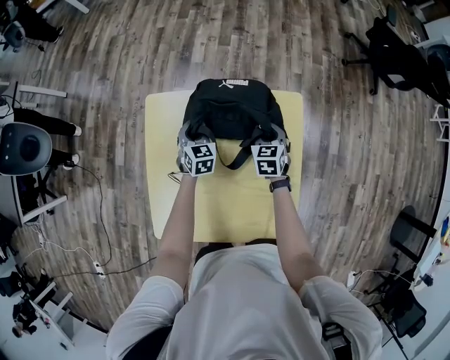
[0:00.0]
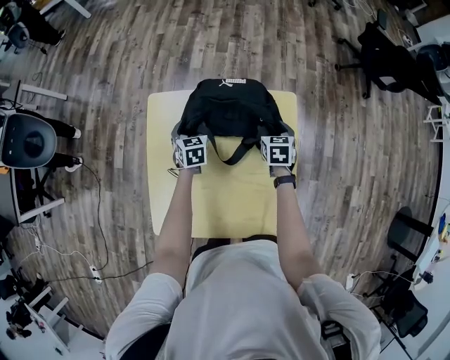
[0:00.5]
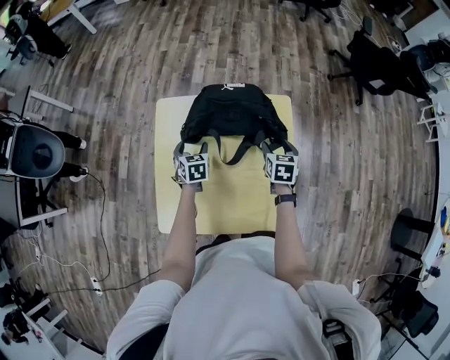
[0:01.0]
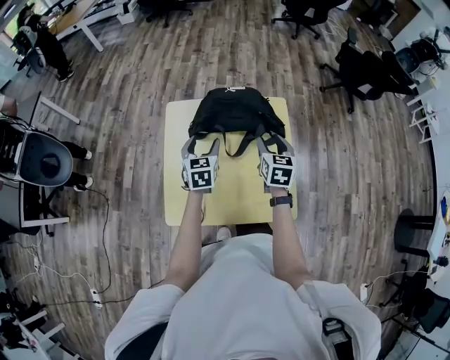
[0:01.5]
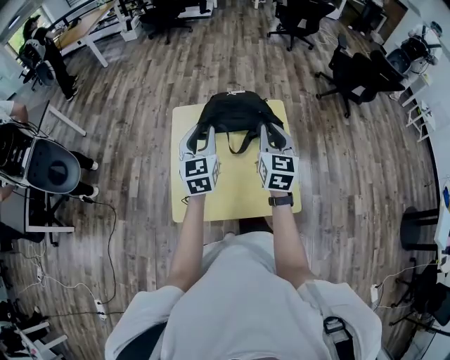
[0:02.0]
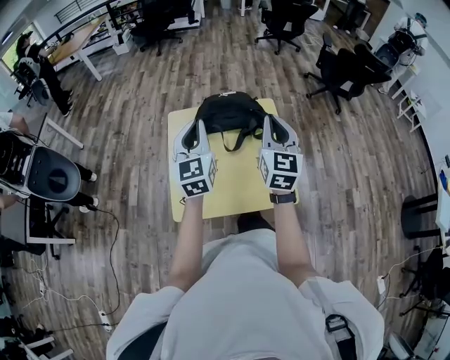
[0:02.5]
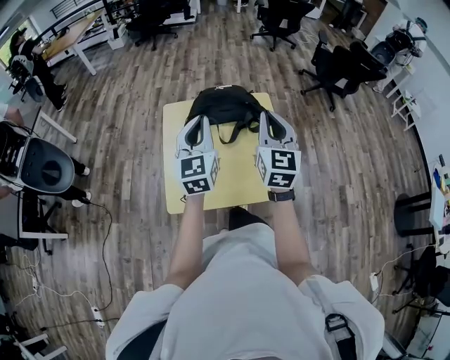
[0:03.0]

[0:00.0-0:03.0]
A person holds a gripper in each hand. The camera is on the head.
0:00.0 to 0:01.5: Both grippers move upward and backward, roughly 25 cm. The left gripper opens its fingers. Meanwhile the right gripper swivels some 20 degrees, and opens up.
0:01.5 to 0:03.0: The two grippers go roughly 25 cm upward and backward. The left gripper tilts its fingers roughly 30 degrees upward, and closes up. Meanwhile the right gripper changes its angle by some 30 degrees, and closes up.

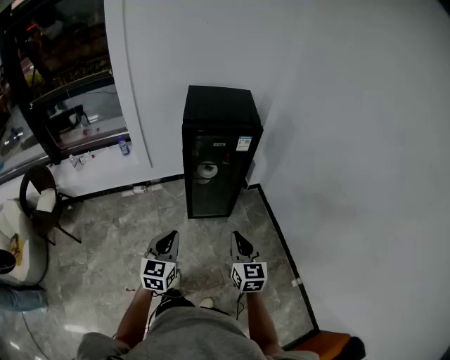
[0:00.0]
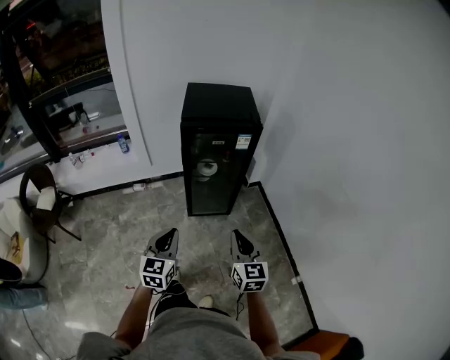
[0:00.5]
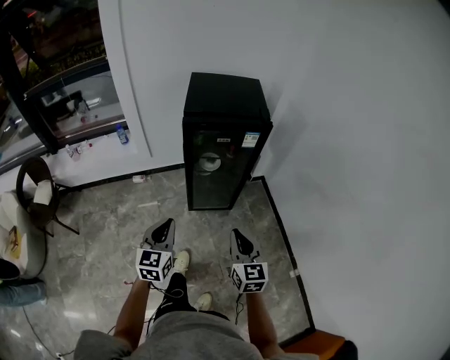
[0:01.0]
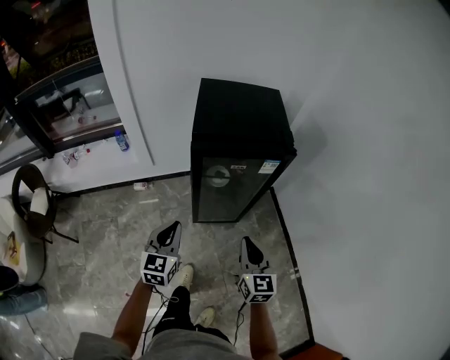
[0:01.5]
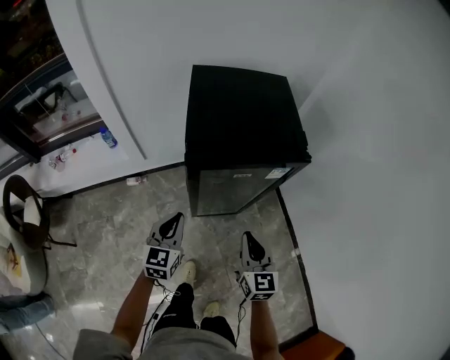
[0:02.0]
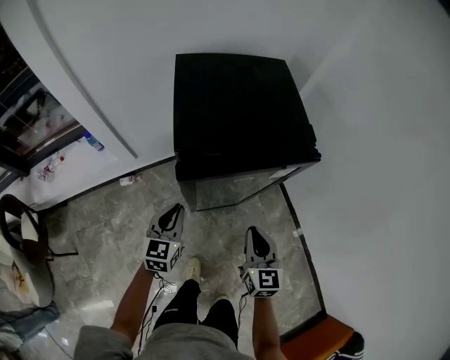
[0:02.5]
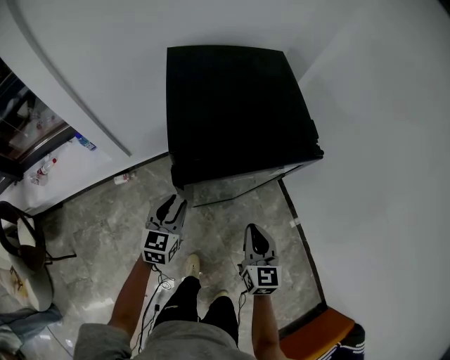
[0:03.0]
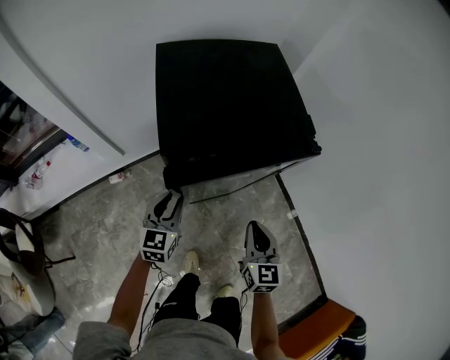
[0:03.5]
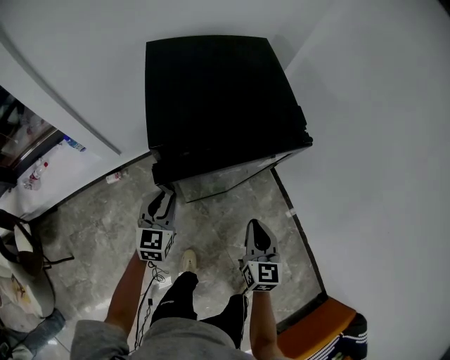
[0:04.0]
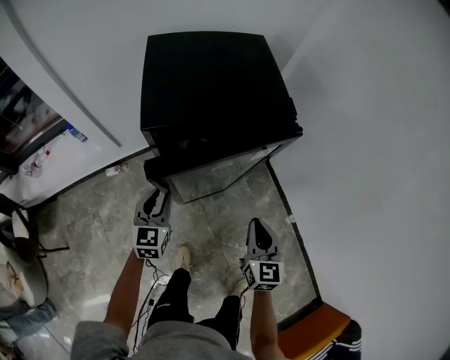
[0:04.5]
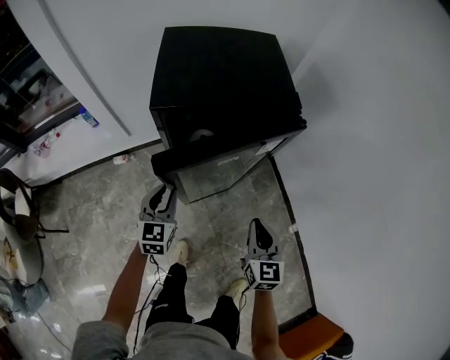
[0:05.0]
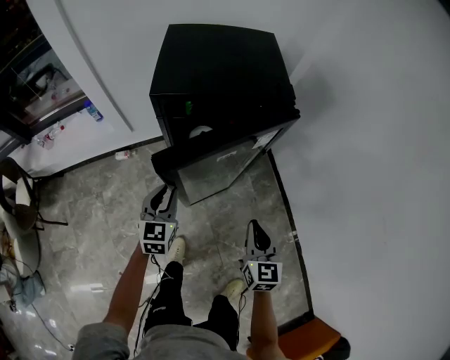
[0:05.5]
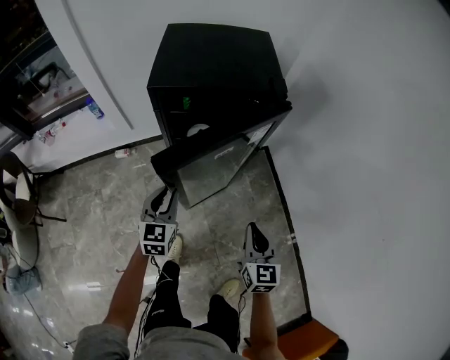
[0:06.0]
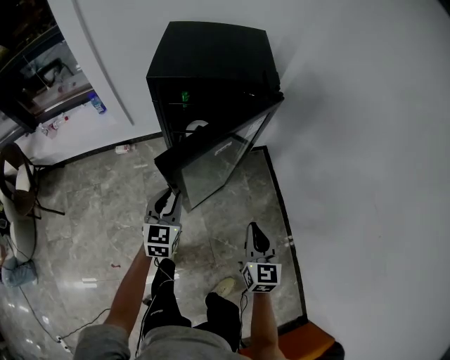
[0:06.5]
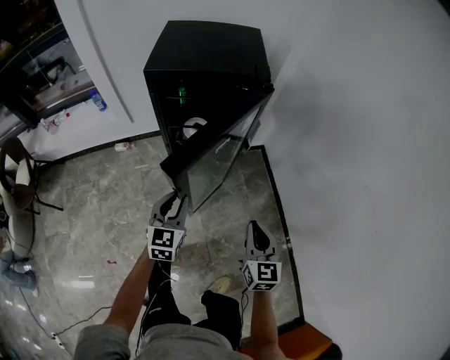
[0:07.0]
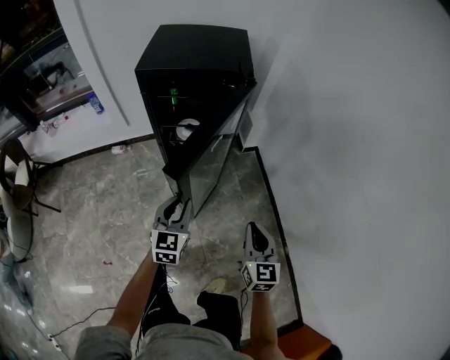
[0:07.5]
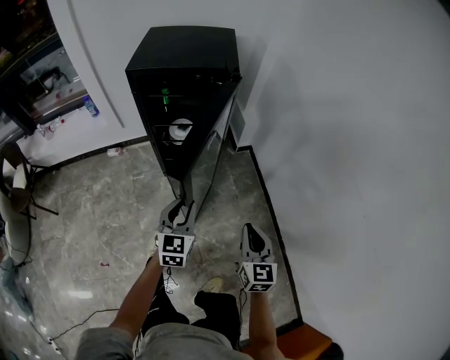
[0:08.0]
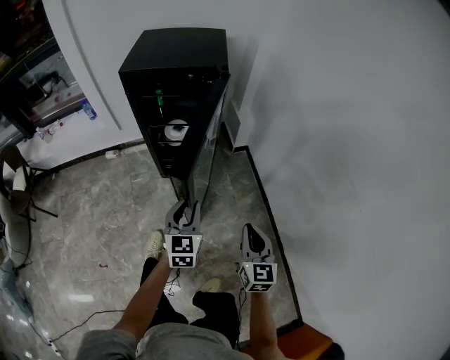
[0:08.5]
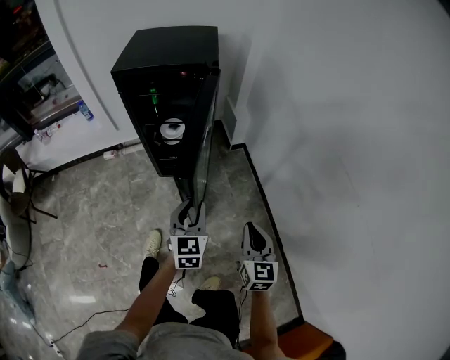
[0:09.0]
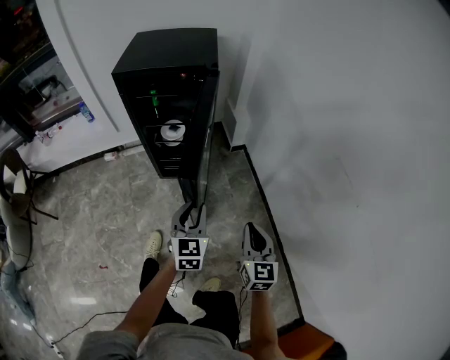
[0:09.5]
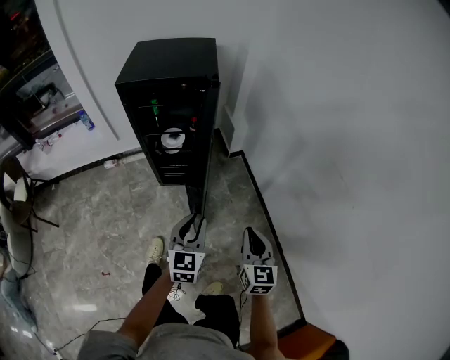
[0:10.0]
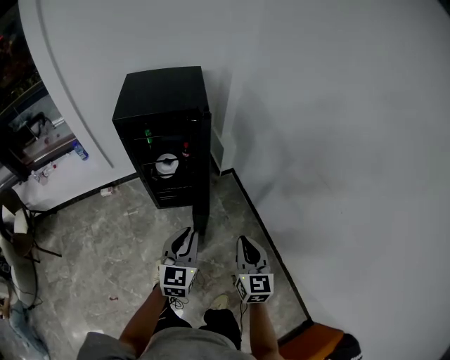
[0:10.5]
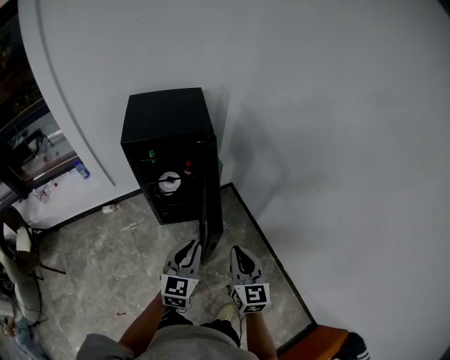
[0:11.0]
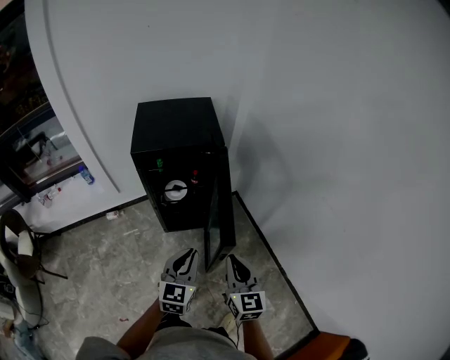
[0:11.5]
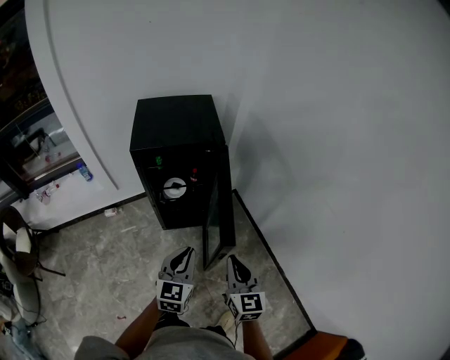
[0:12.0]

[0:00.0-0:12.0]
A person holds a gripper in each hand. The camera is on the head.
0:00.0 to 0:02.0: The grippers both shift forward by about 30 cm.
0:02.0 to 0:04.0: The left gripper is displaced forward and downward by roughly 15 cm, and opens up; the right gripper shifts roughly 5 cm downward.
0:04.0 to 0:06.0: The two grippers go roughly 15 cm backward and to the right.
0:06.0 to 0:08.0: Both grippers move to the right and backward, some 20 cm.
0:08.0 to 0:10.0: The left gripper shifts approximately 10 cm to the right and backward; the right gripper changes place by about 5 cm.
0:10.0 to 0:12.0: The two grippers go roughly 20 cm to the left and upward.

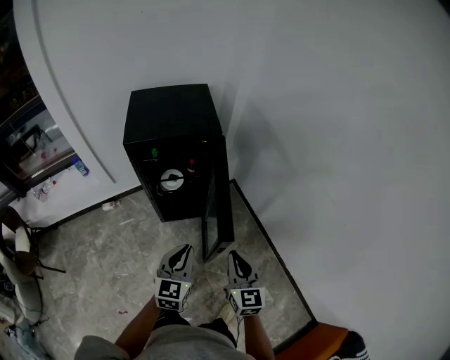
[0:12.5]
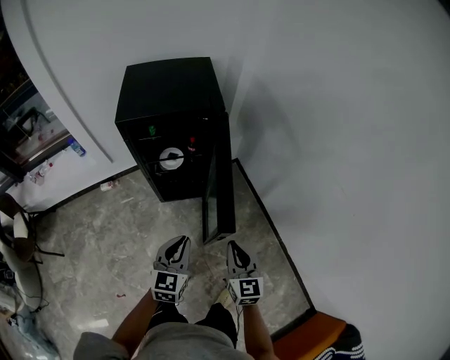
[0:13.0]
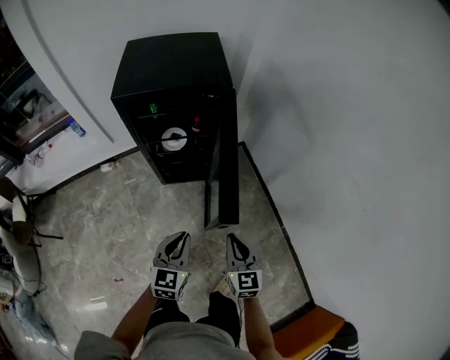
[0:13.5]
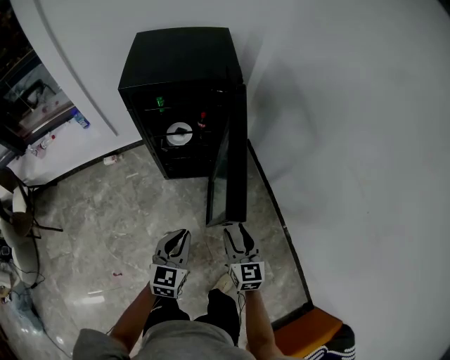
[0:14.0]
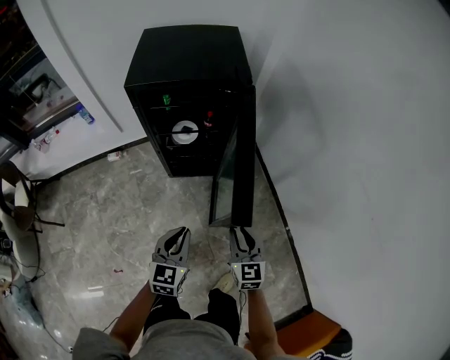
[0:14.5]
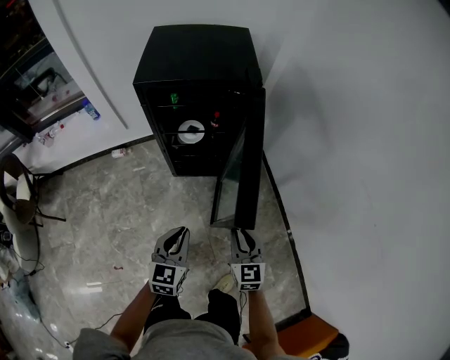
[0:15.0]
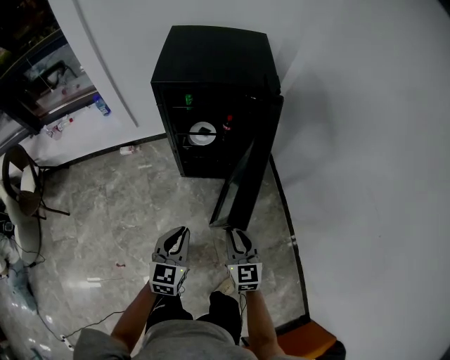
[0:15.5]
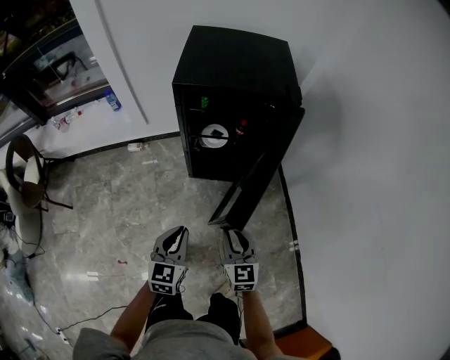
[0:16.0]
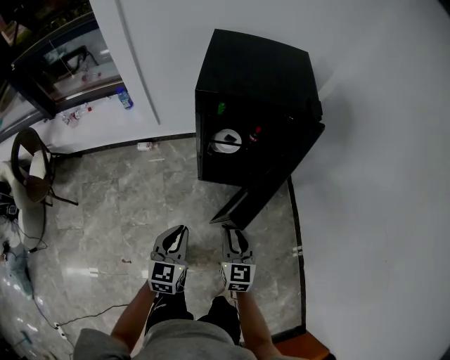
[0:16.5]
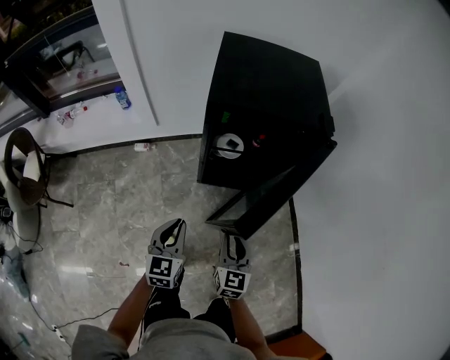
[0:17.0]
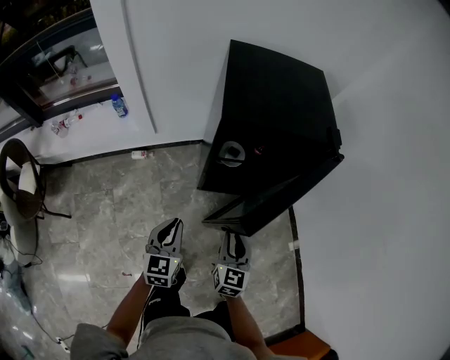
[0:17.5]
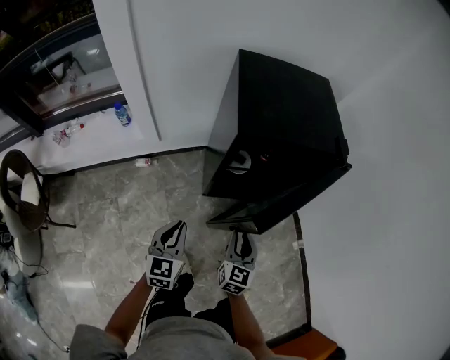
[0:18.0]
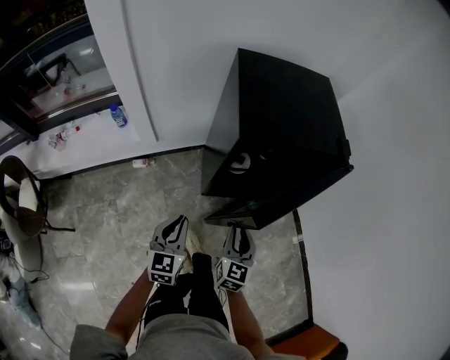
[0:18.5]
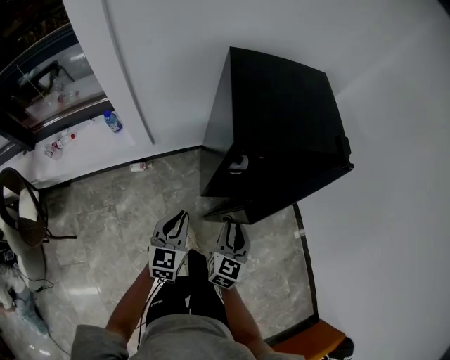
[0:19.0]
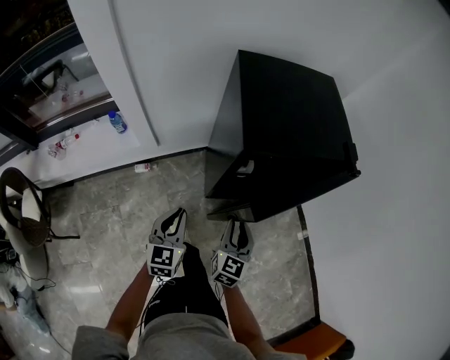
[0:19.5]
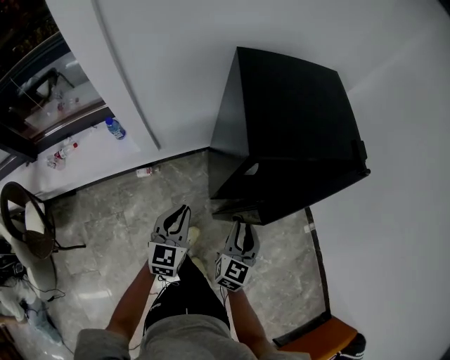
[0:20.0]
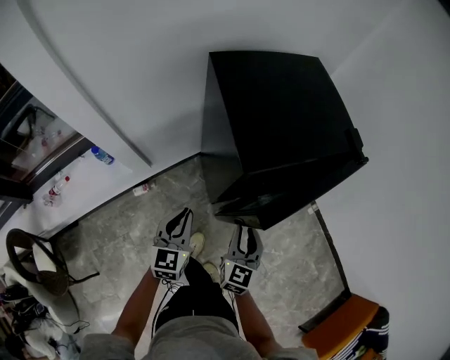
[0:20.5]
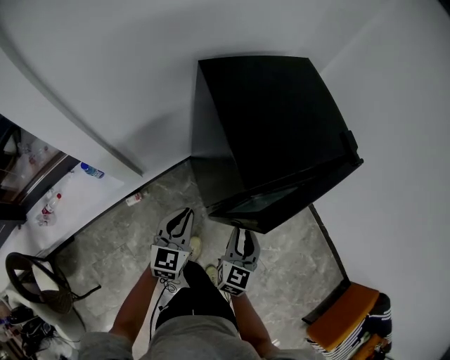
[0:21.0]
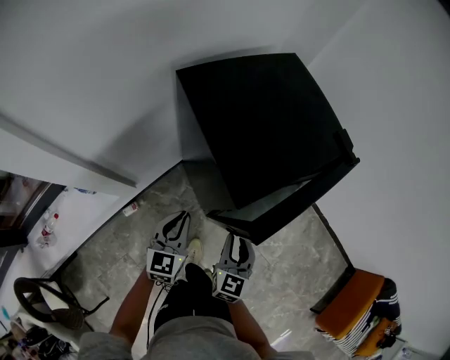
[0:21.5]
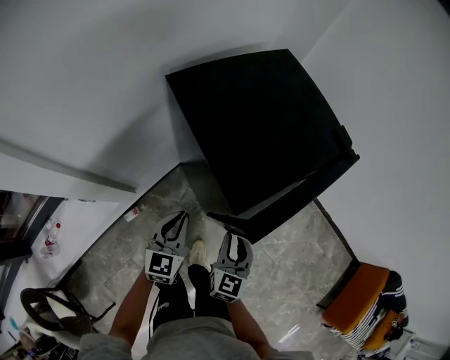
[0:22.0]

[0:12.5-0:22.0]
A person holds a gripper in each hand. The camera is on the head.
0:12.5 to 0:14.5: The grippers both shift downward by about 15 cm.
0:14.5 to 0:16.5: Both grippers move to the left, some 15 cm.
0:16.5 to 0:18.0: The grippers both shift to the left and forward by about 15 cm. The right gripper swivels roughly 20 degrees.
0:18.0 to 0:20.0: The grippers both shift forward and to the left by approximately 10 cm.
0:20.0 to 0:22.0: The right gripper shifts approximately 5 cm to the left. Meanwhile the left gripper moves forward, about 15 cm, and changes its angle by about 30 degrees.

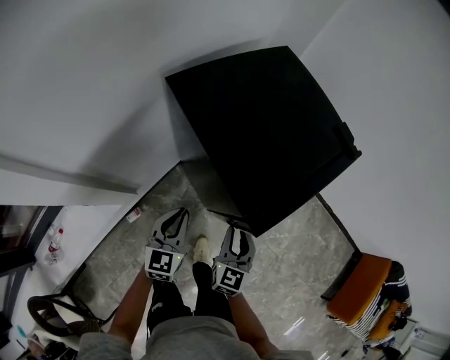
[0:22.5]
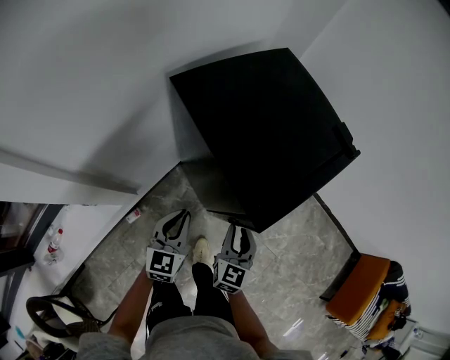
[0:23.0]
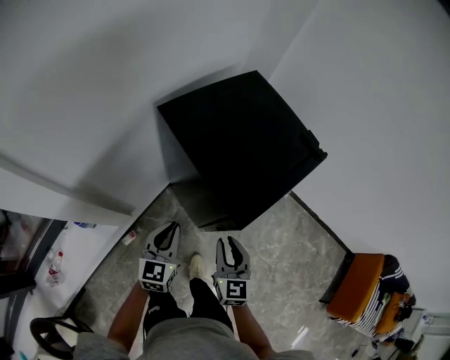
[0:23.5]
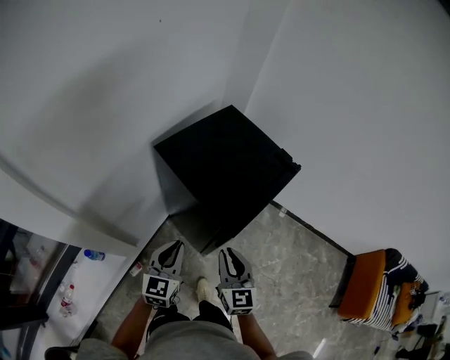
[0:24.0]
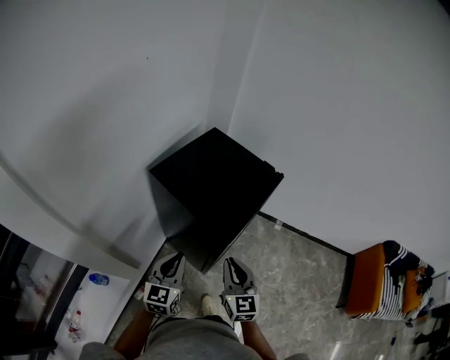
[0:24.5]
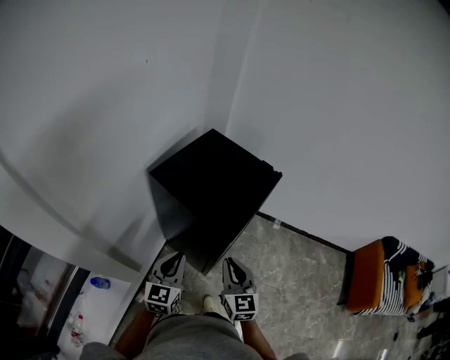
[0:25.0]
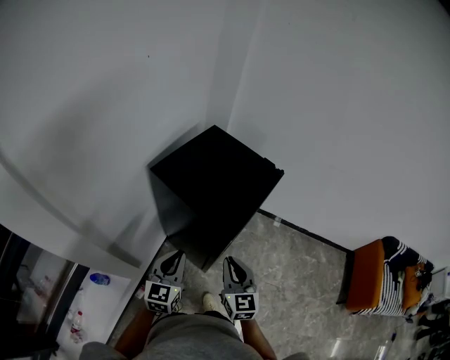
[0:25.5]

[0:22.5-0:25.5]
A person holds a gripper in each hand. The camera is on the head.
0:22.5 to 0:24.0: The grippers both shift upward by about 15 cm.
0:24.0 to 0:25.5: There are only small adjustments of the grippers.
